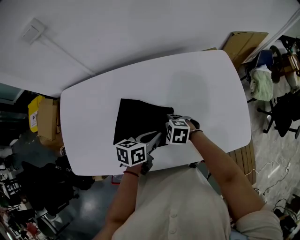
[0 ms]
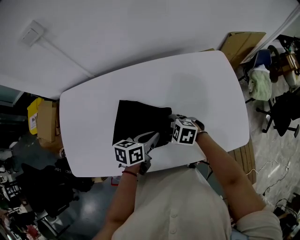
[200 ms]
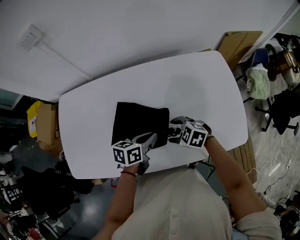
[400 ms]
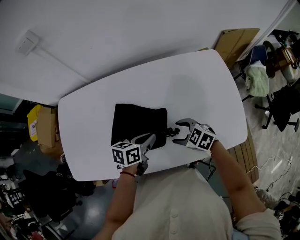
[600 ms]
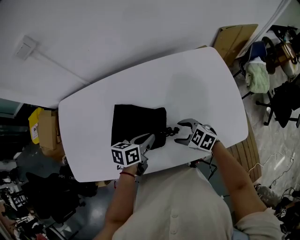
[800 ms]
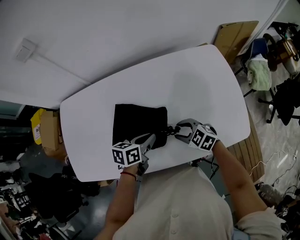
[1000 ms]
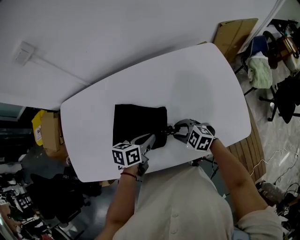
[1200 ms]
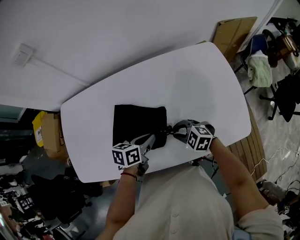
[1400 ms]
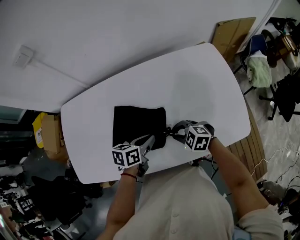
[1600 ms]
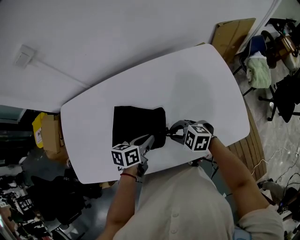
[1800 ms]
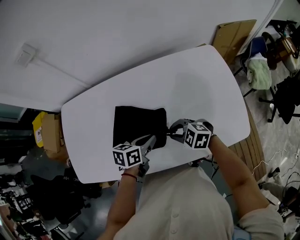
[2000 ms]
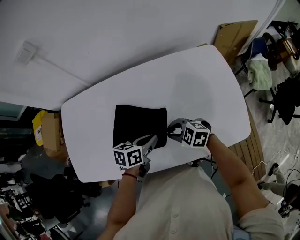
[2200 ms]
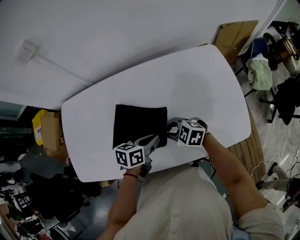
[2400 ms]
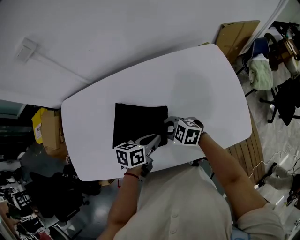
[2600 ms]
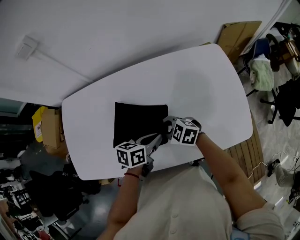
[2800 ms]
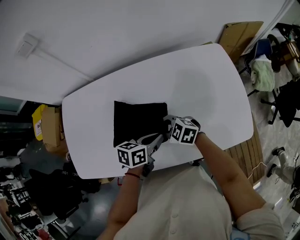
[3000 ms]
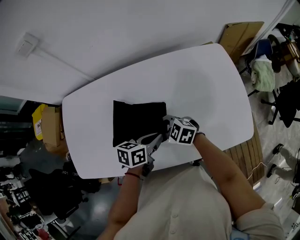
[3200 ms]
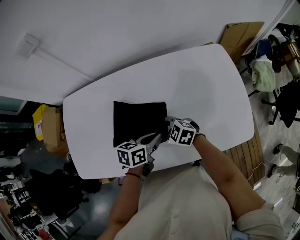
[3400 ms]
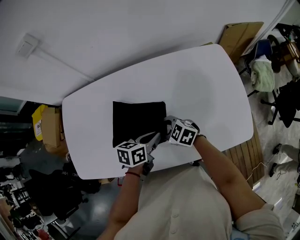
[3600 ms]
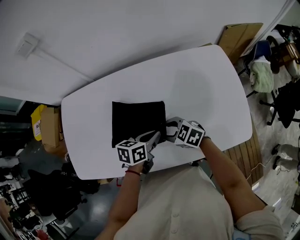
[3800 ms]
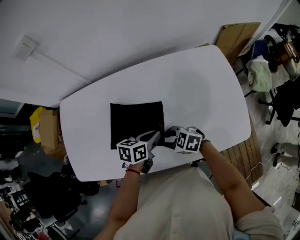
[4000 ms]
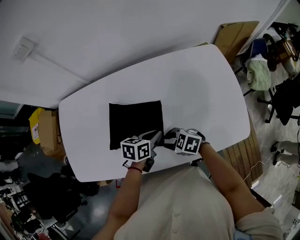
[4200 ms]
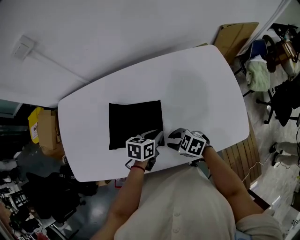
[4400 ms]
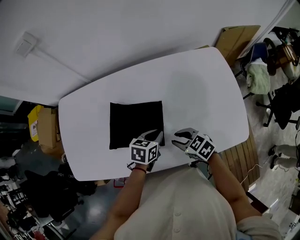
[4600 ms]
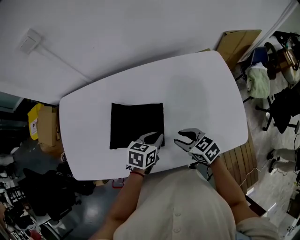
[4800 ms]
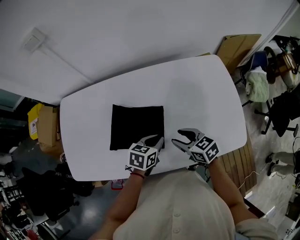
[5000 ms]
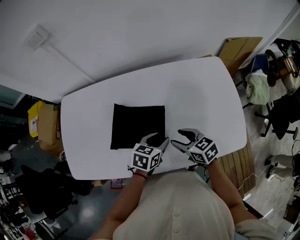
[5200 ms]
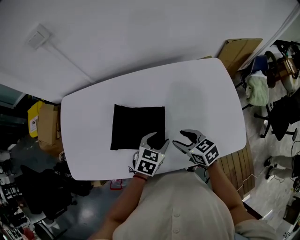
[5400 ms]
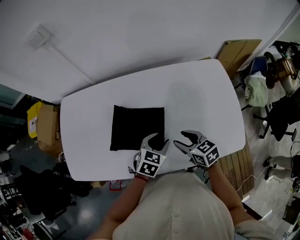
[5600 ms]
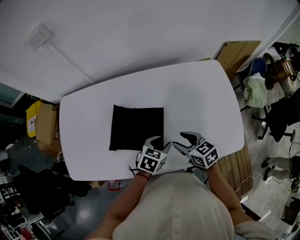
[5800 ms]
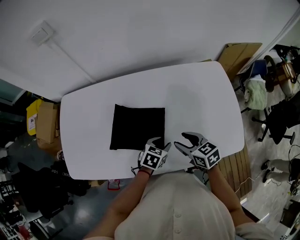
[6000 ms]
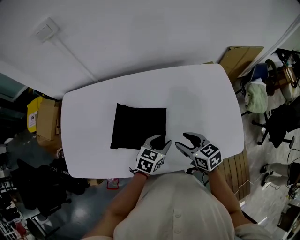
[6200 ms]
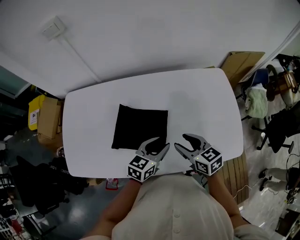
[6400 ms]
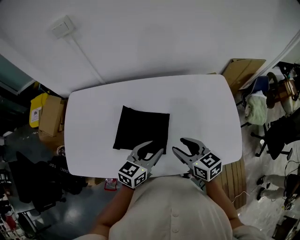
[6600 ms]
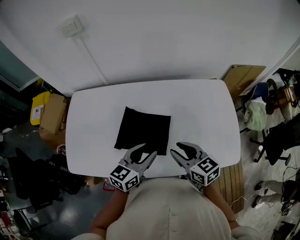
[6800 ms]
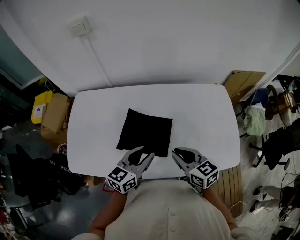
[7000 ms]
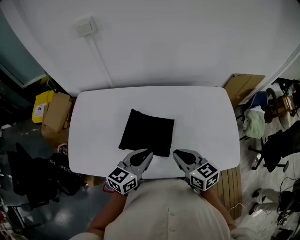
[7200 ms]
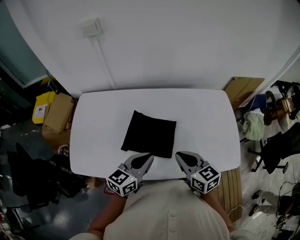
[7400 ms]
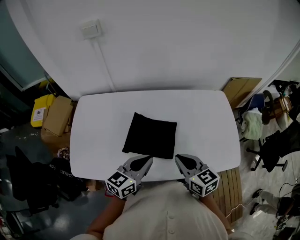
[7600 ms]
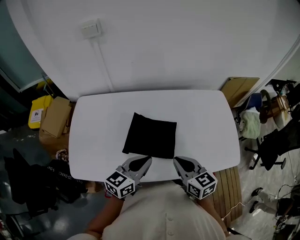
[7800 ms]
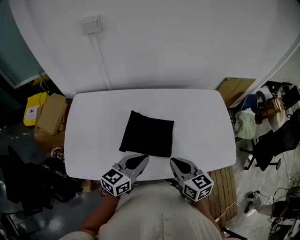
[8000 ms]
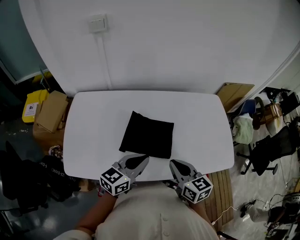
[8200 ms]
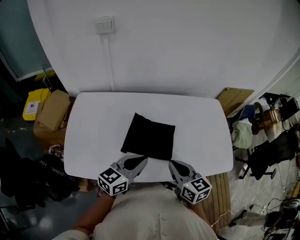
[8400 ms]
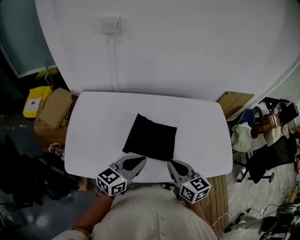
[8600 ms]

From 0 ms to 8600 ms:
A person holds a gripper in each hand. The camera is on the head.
From 0 ms to 1400 ms: The right gripper ends up approximately 10 cm from where it was, and closes its fingers.
From 1400 ms to 2800 ms: The right gripper moves roughly 10 cm.
From 2800 ms to 4400 ms: The left gripper shifts about 5 cm downward. Meanwhile the right gripper changes place by some 10 cm.
From 4400 ms to 5800 ms: The right gripper goes about 5 cm upward, and swivels some 30 degrees. The left gripper turns by some 20 degrees, and opens up.
From 5800 ms to 7200 ms: Both grippers move upward and to the left, approximately 15 cm. The left gripper tips its fingers upward by about 30 degrees, and closes, while the right gripper closes.
From 7200 ms to 8600 ms: Both grippers travel together to the left, some 10 cm.

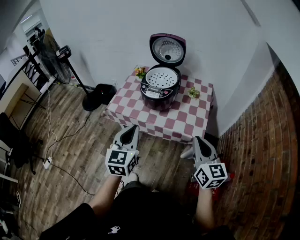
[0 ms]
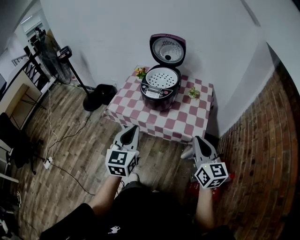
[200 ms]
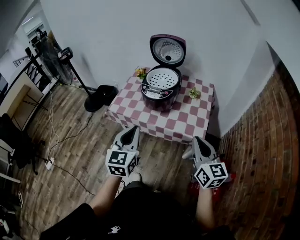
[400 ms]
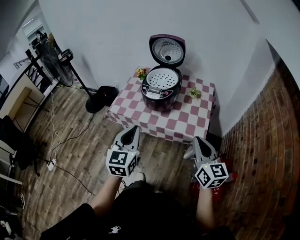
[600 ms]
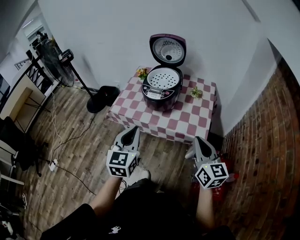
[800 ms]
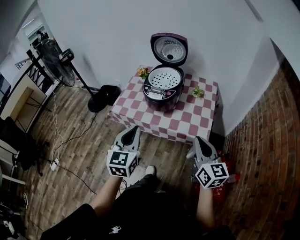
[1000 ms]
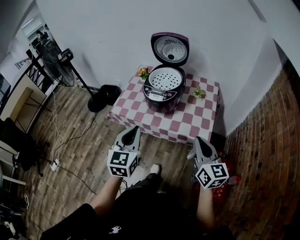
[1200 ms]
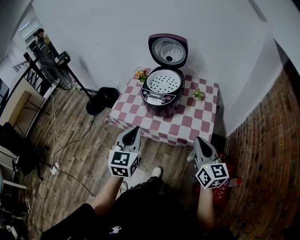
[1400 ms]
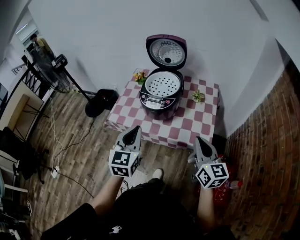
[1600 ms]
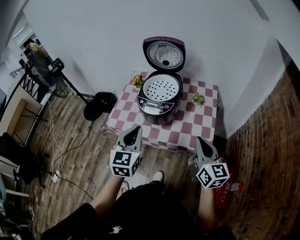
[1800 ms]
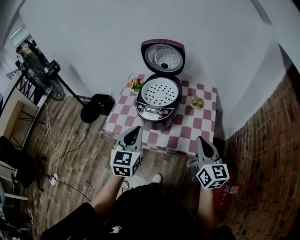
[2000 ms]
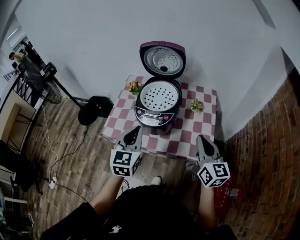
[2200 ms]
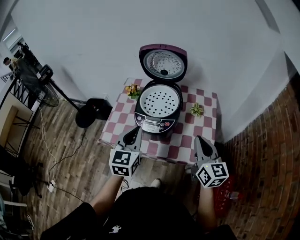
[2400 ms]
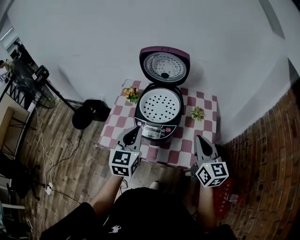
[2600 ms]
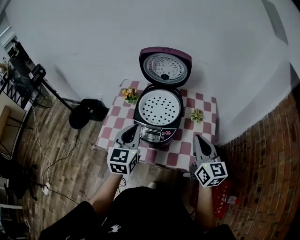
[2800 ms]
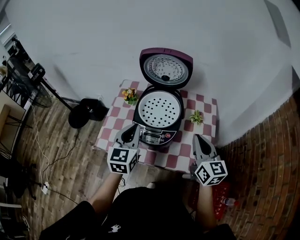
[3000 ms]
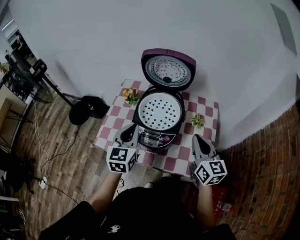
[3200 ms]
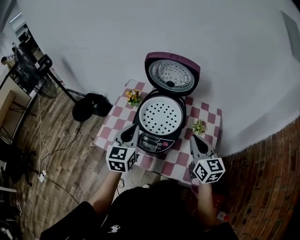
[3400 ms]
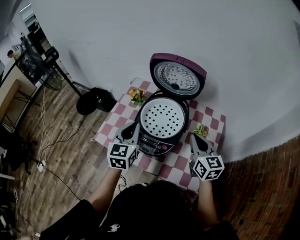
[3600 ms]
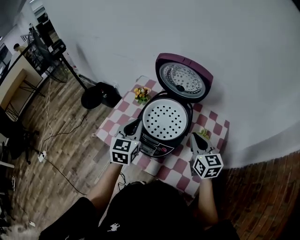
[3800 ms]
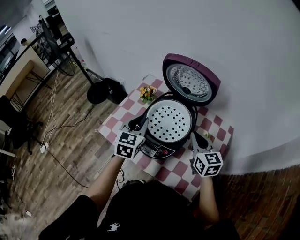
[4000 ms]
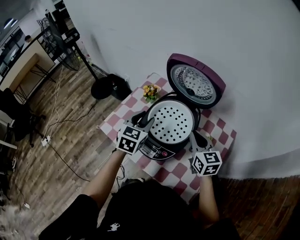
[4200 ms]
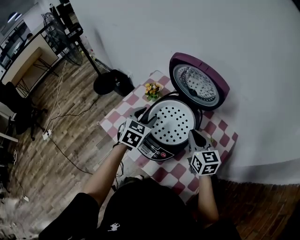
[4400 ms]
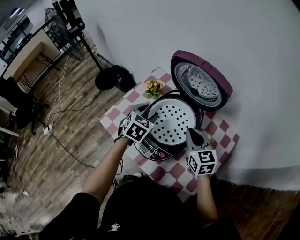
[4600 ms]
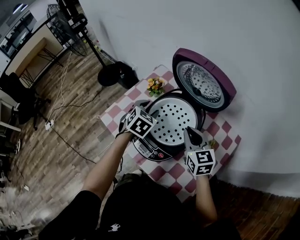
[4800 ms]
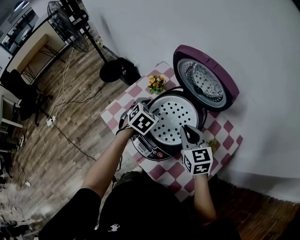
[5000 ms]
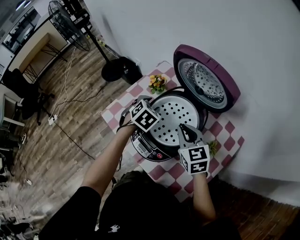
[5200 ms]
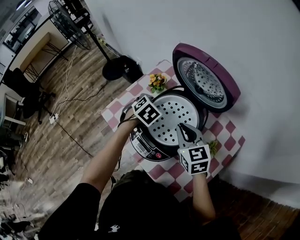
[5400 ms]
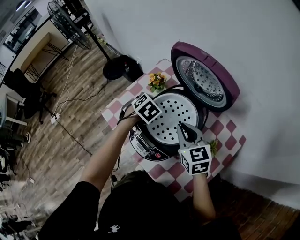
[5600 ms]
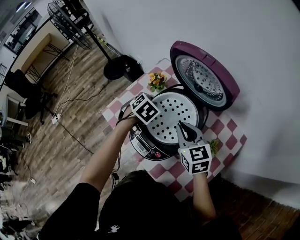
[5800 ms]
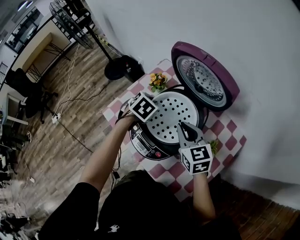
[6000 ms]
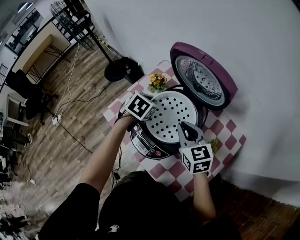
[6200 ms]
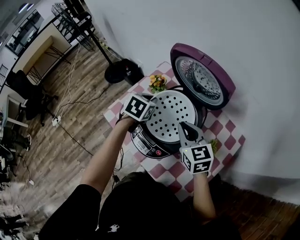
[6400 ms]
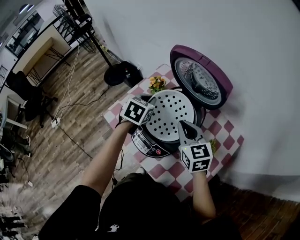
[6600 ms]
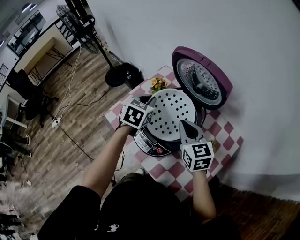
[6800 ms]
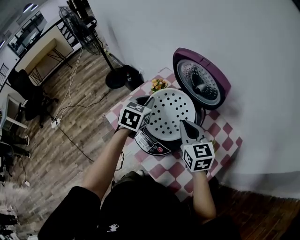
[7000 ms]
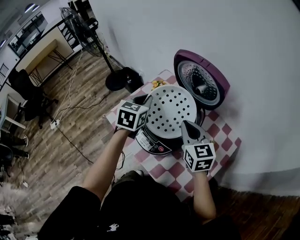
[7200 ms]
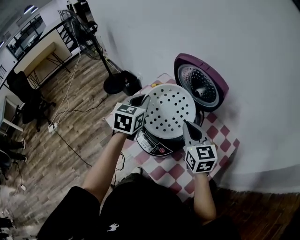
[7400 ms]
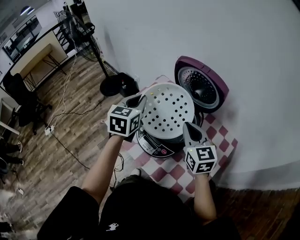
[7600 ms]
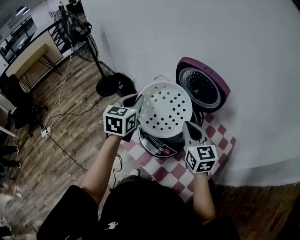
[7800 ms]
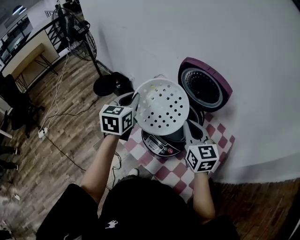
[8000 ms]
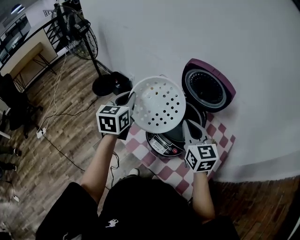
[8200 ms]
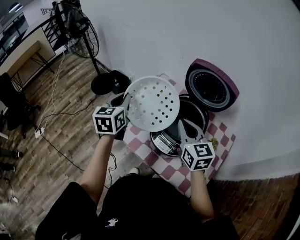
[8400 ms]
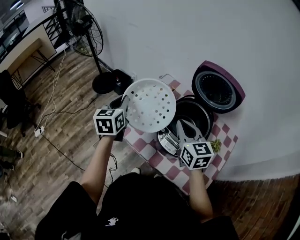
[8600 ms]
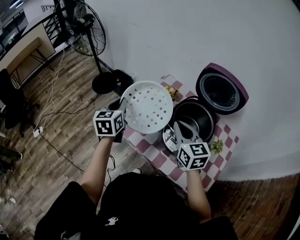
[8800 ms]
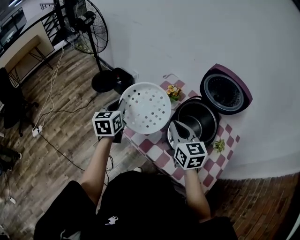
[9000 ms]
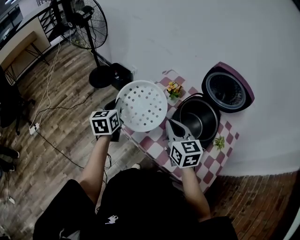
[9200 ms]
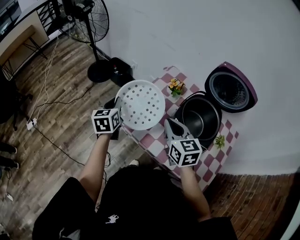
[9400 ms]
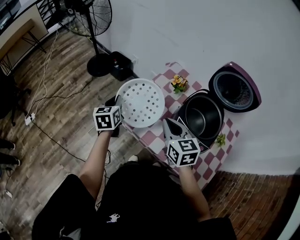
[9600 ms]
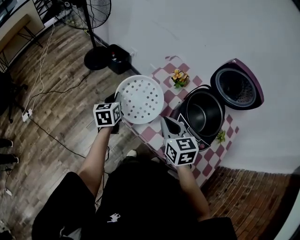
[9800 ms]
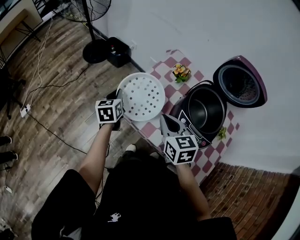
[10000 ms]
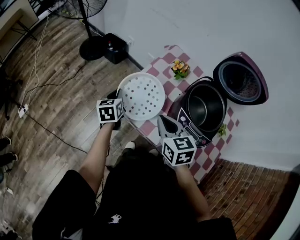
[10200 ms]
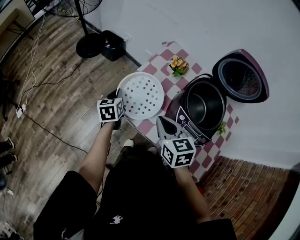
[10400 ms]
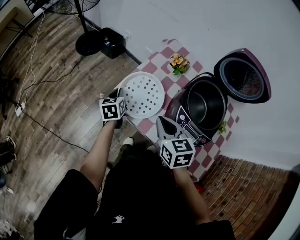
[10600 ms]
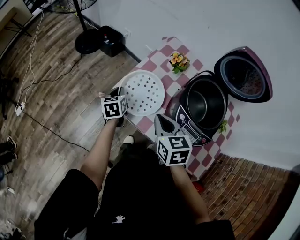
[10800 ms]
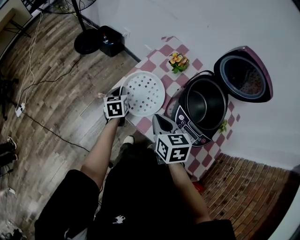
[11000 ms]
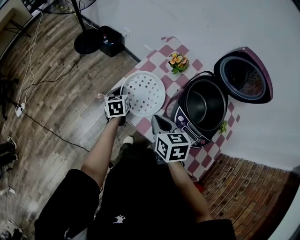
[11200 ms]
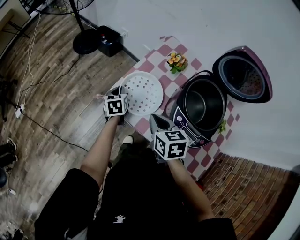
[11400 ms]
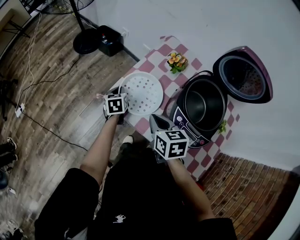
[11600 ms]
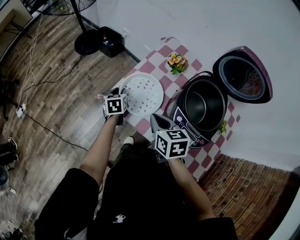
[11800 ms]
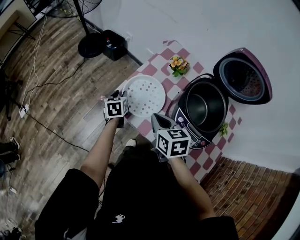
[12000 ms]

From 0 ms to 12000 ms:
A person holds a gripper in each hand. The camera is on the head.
From 0 ms to 1600 ms: Both grippers move forward, approximately 10 cm.
From 1600 ms to 3000 ms: The grippers both shift forward by about 20 cm.
From 3000 ms to 4400 ms: The grippers both shift forward and downward by roughly 15 cm. The right gripper turns by roughly 30 degrees. The left gripper changes its angle by roughly 30 degrees, and opens.
From 4400 ms to 6000 ms: The right gripper shifts by some 5 cm, while the left gripper moves downward and forward, roughly 10 cm, changes its angle by some 30 degrees, and closes its fingers.
From 6000 ms to 7600 ms: The left gripper moves upward, about 15 cm, and points its fingers approximately 40 degrees further upward, while the right gripper is displaced upward by about 10 cm.
From 7600 ms to 9000 ms: The two grippers go approximately 20 cm to the left.
From 9000 ms to 10400 ms: The left gripper travels downward by about 20 cm. Meanwhile the right gripper shifts roughly 10 cm downward and to the left.
From 10400 ms to 12000 ms: The left gripper shifts approximately 5 cm downward, and opens its fingers.

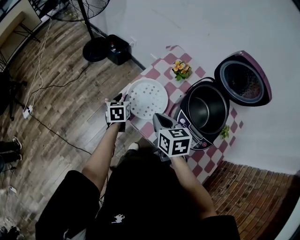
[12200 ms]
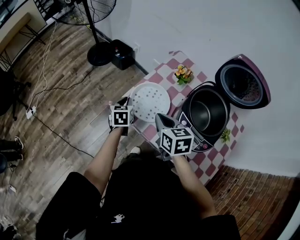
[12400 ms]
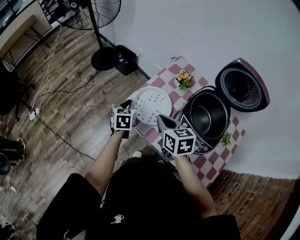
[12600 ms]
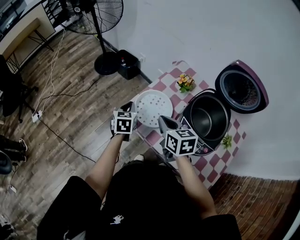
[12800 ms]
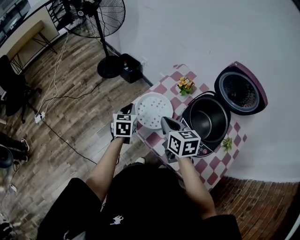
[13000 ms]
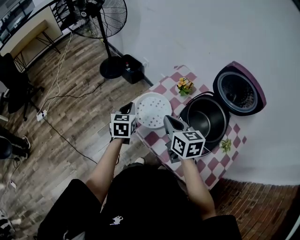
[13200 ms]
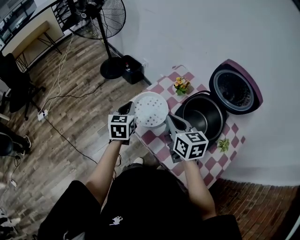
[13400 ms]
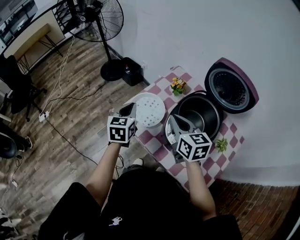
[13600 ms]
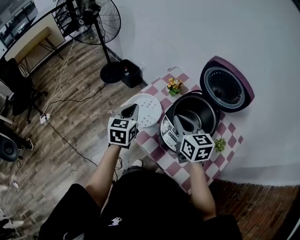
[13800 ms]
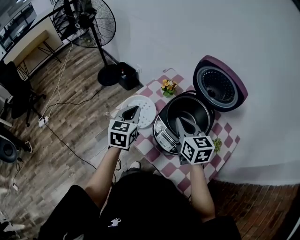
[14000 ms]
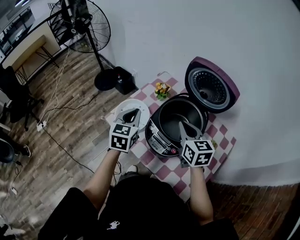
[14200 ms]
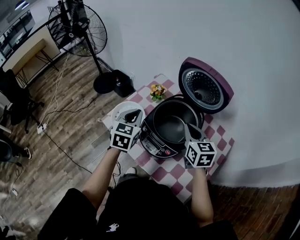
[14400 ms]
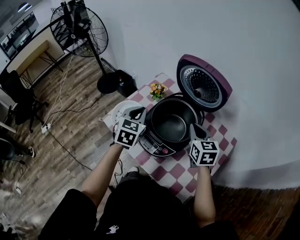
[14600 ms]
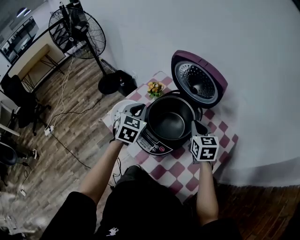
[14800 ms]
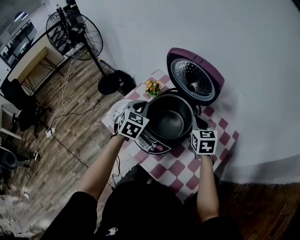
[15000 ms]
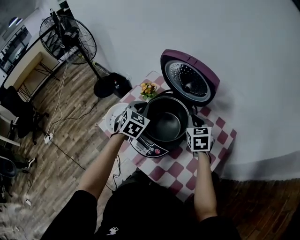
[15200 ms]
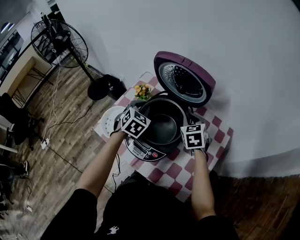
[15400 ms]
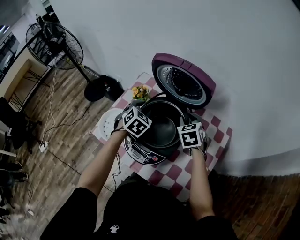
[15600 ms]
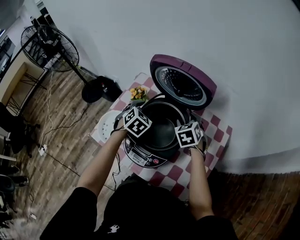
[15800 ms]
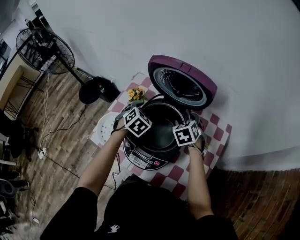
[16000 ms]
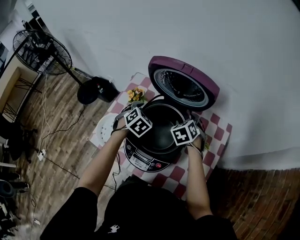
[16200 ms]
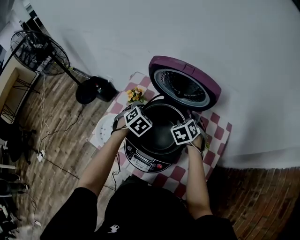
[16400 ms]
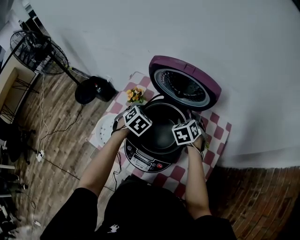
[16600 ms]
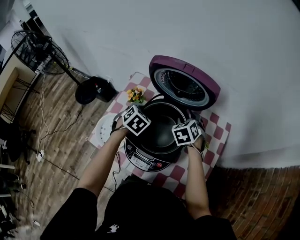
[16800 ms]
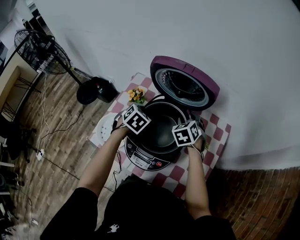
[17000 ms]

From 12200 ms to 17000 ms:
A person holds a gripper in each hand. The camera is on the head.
From 12200 ms to 13800 ms: The left gripper moves upward, backward and to the right, some 25 cm, changes its angle by about 20 degrees, and closes; the right gripper is displaced to the right and upward by approximately 15 cm.
From 13800 ms to 15400 ms: The grippers both shift to the right by approximately 25 cm. The right gripper changes its angle by approximately 30 degrees; the left gripper turns by about 40 degrees.
From 15400 ms to 17000 ms: The right gripper opens its fingers. Meanwhile the left gripper travels downward by about 5 cm, and opens, then closes once more.
